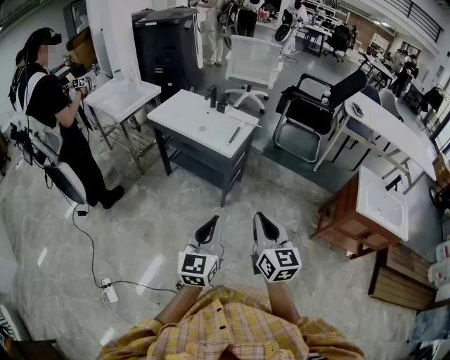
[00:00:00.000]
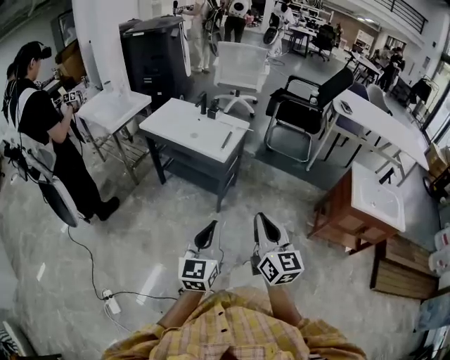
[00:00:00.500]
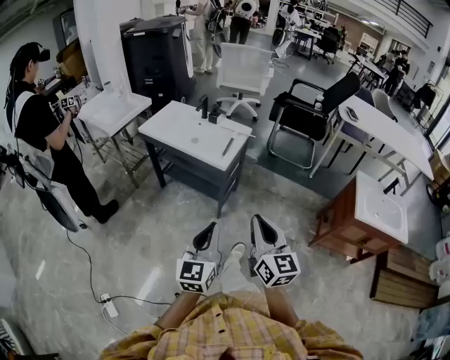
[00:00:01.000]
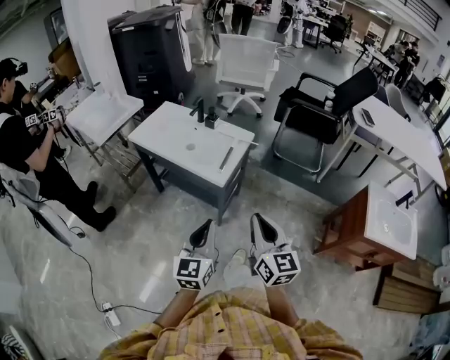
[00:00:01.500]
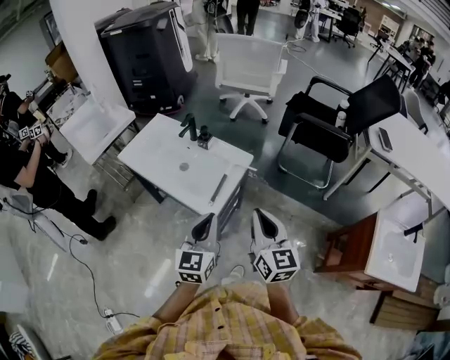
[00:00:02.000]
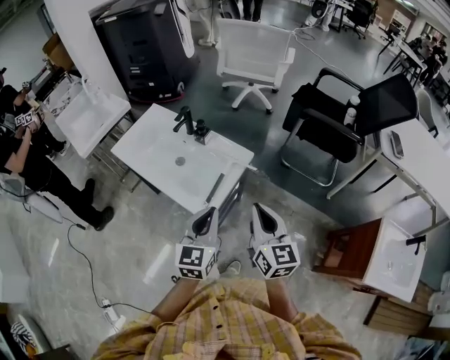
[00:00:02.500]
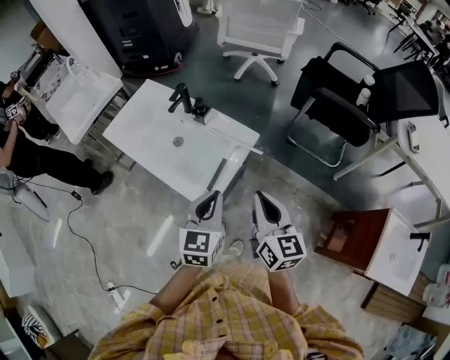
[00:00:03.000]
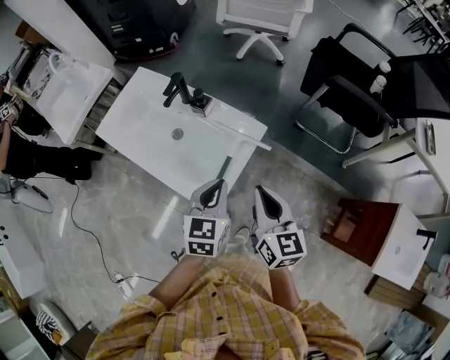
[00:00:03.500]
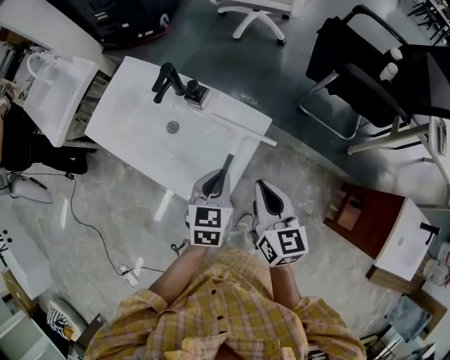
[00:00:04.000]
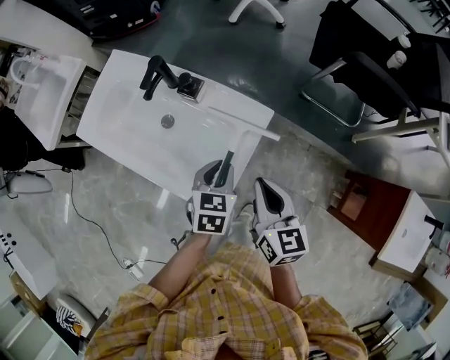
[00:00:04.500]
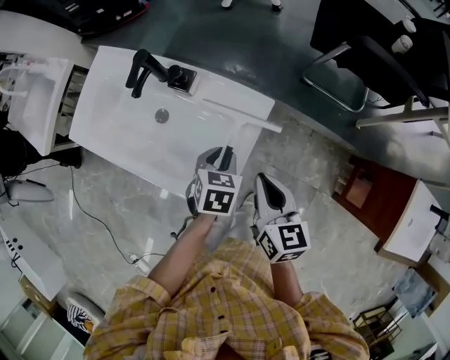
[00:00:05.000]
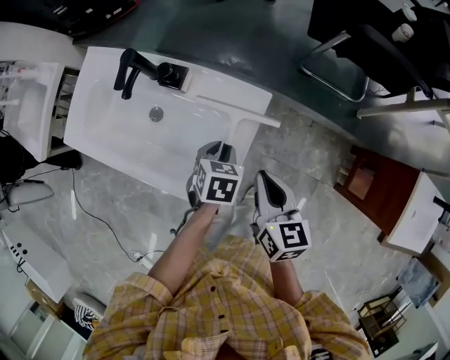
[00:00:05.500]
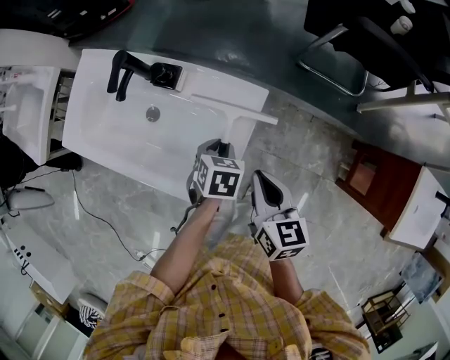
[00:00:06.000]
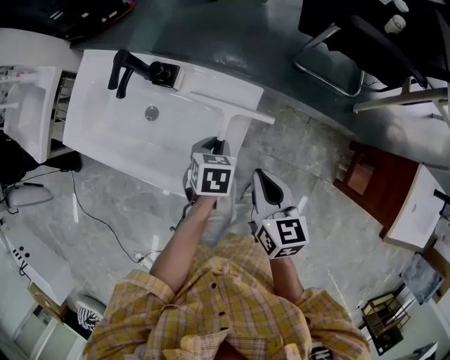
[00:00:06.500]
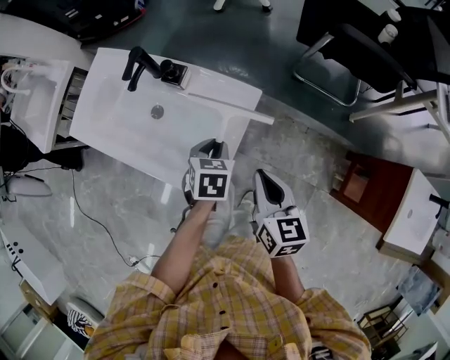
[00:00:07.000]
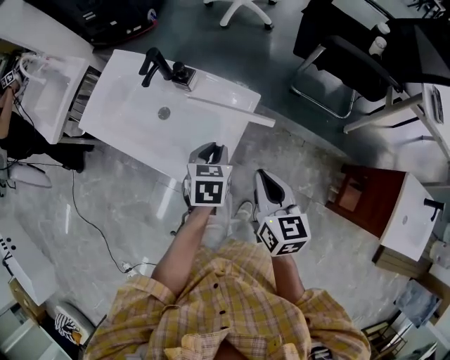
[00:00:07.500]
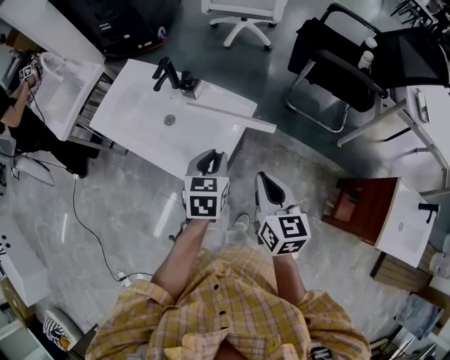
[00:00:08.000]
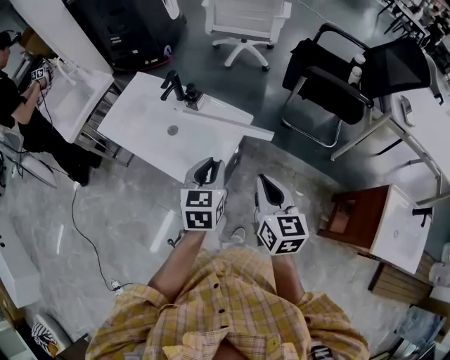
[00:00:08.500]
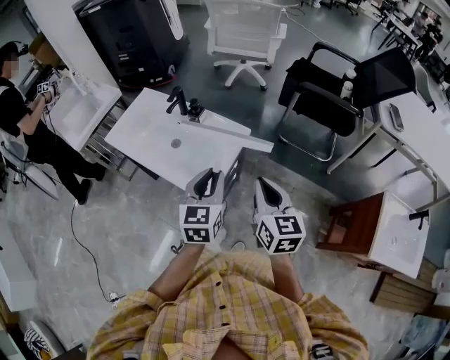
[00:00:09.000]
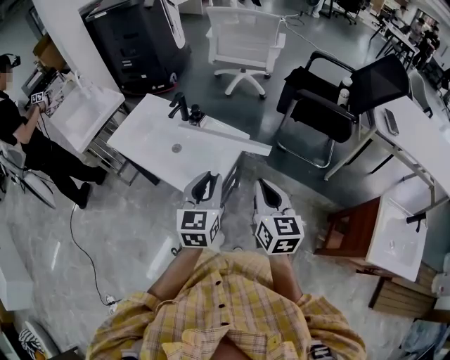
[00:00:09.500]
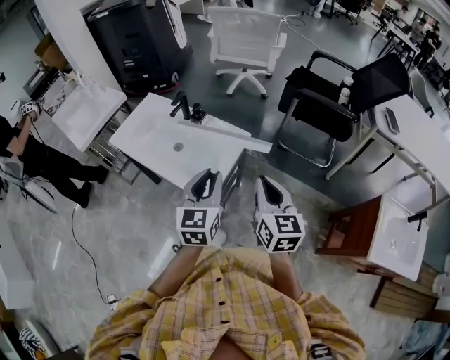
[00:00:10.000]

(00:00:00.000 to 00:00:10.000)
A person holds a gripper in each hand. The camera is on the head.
00:00:00.000 - 00:00:02.000: The two grippers travel together, forward, roughly 40 cm.
00:00:02.000 - 00:00:04.000: Both grippers travel together forward and downward, roughly 25 cm. The left gripper changes its angle by approximately 30 degrees.
00:00:04.000 - 00:00:06.000: The left gripper is displaced downward by some 15 cm, and changes its angle by about 30 degrees. Meanwhile the right gripper goes roughly 10 cm downward.
00:00:06.000 - 00:00:08.000: The two grippers go approximately 20 cm upward and backward. The left gripper turns by about 30 degrees.
00:00:08.000 - 00:00:10.000: The left gripper travels upward and backward by some 15 cm, and changes its angle by some 30 degrees, while the right gripper shifts roughly 10 cm upward and backward.

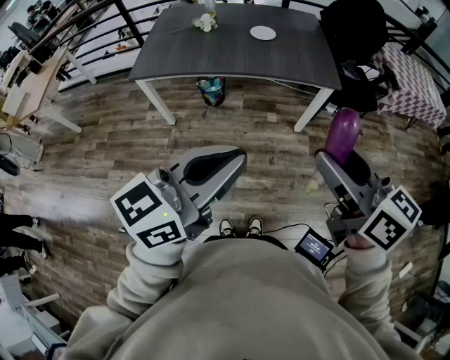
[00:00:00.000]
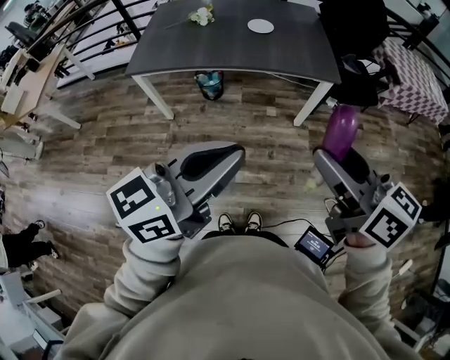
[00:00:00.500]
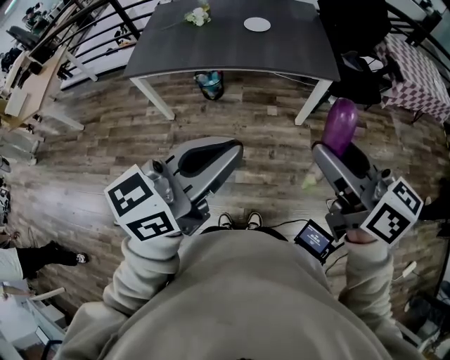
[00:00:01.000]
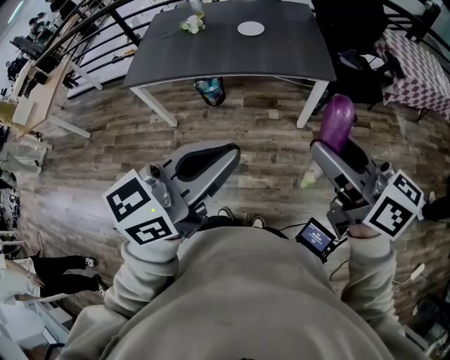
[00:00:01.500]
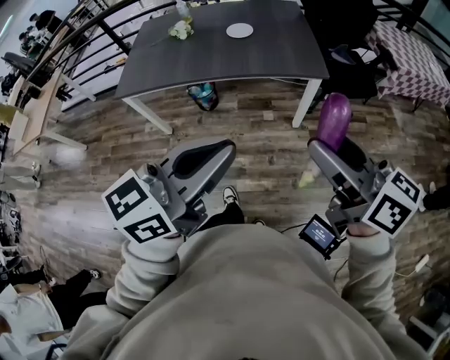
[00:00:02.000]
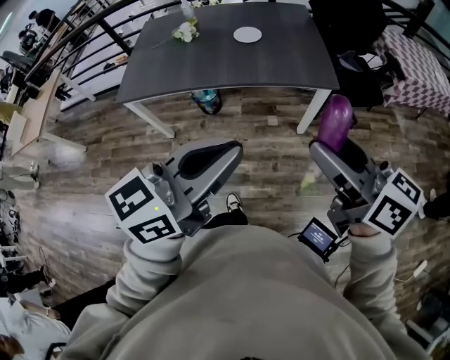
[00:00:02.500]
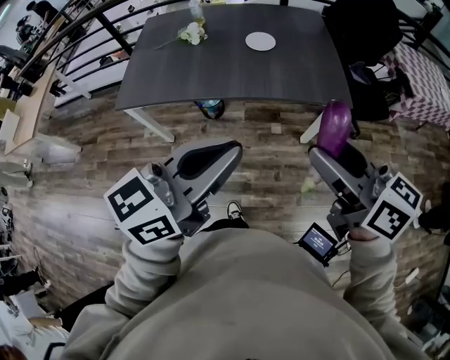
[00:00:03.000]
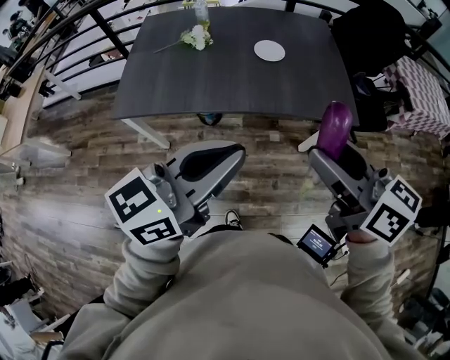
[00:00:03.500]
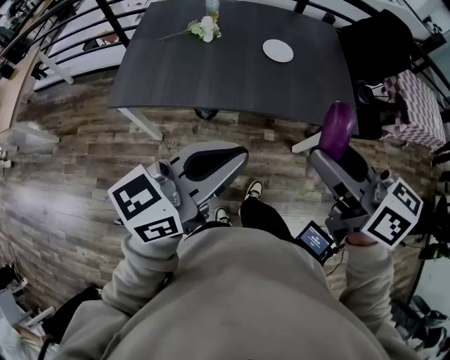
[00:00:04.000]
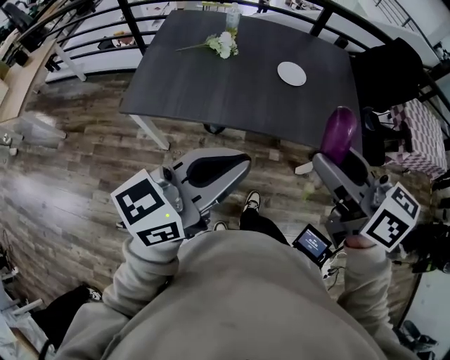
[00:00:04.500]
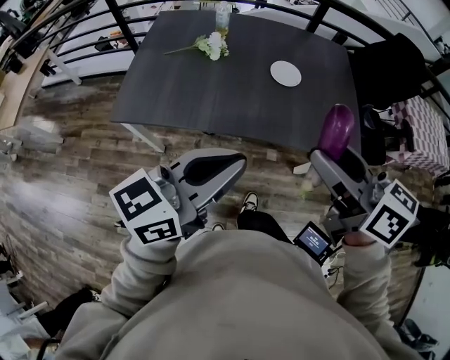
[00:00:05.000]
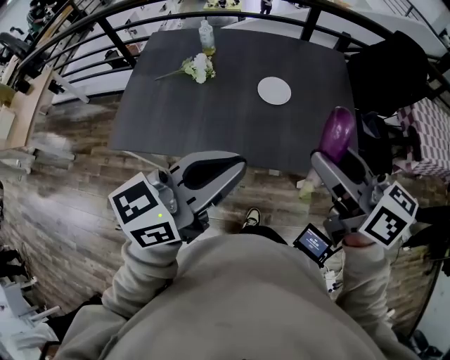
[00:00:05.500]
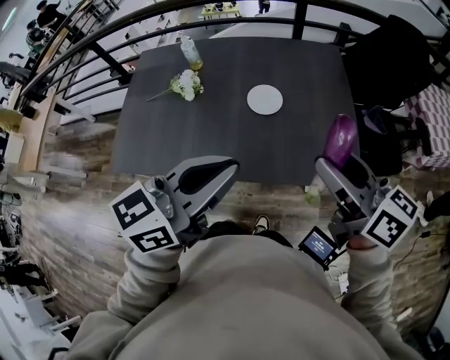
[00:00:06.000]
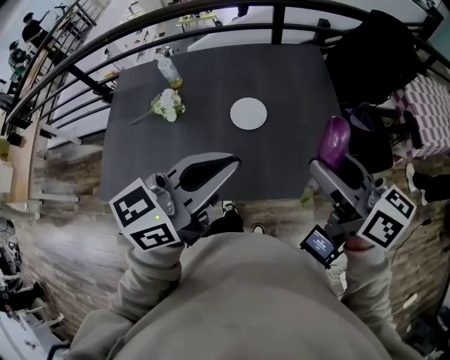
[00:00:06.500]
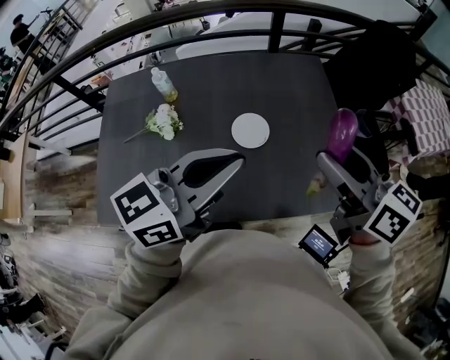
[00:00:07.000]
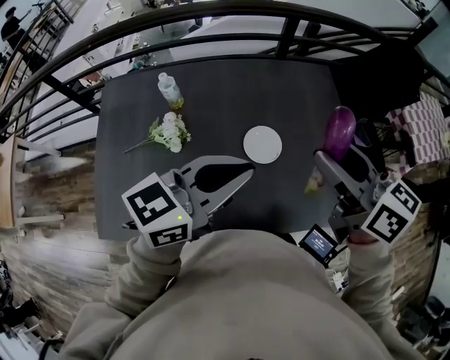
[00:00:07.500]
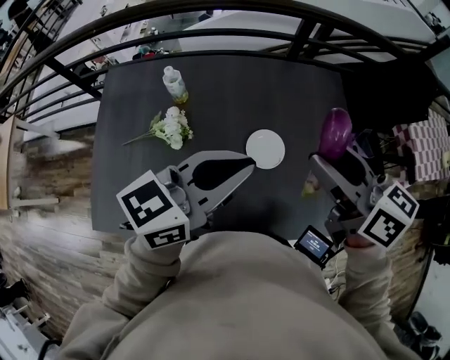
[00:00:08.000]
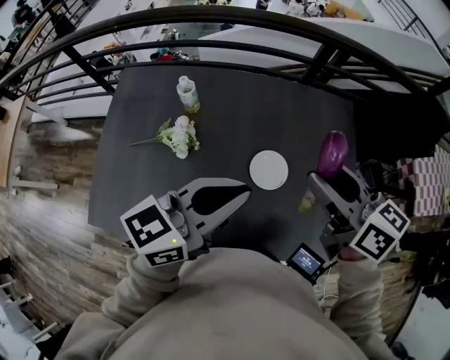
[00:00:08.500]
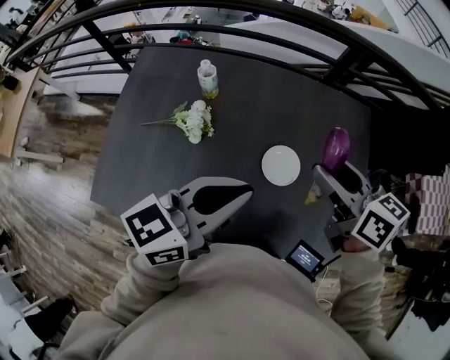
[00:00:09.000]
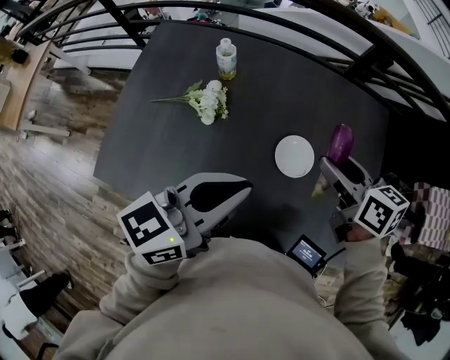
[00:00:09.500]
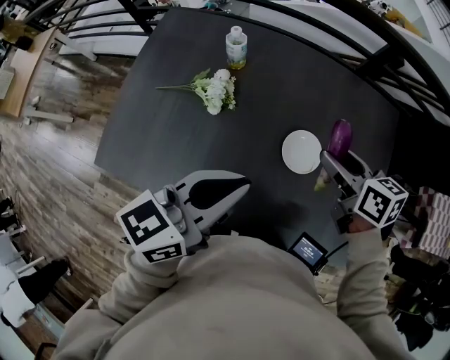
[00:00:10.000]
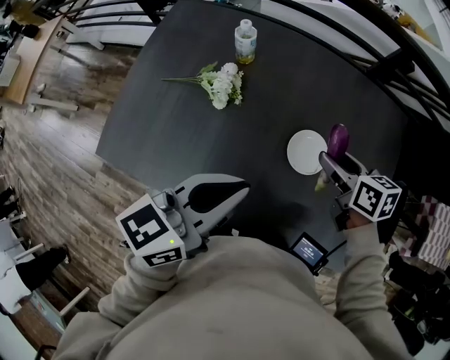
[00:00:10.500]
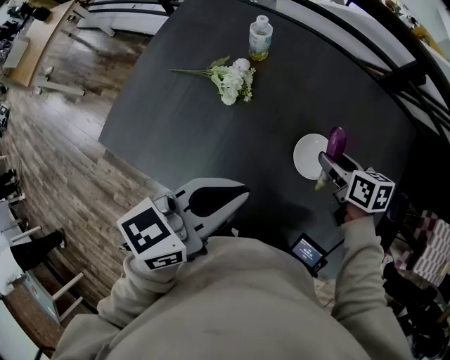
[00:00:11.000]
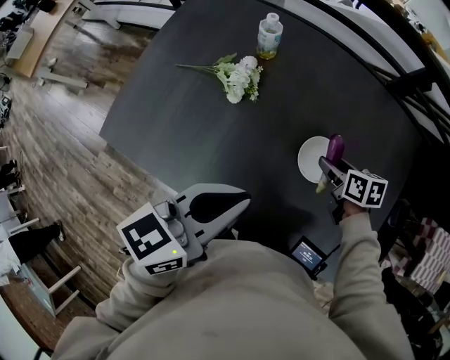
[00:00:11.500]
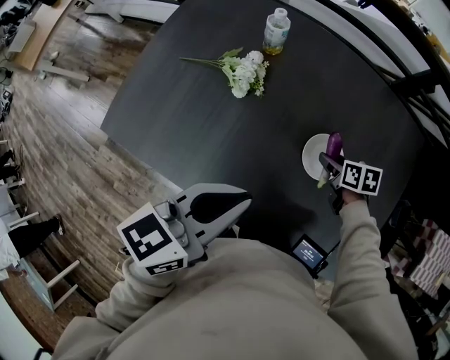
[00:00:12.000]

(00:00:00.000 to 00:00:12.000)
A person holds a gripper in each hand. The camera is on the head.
00:00:00.000 - 00:00:02.000: The grippers both shift to the right and forward by approximately 10 cm.
00:00:02.000 - 00:00:04.000: The left gripper travels forward and to the left by roughly 30 cm. Meanwhile the right gripper heads to the left and forward, covering about 30 cm.
00:00:04.000 - 00:00:06.000: Both grippers travel together forward and to the right, about 25 cm.
00:00:06.000 - 00:00:08.000: The left gripper travels forward by approximately 25 cm; the right gripper shifts roughly 25 cm forward and to the left.
00:00:08.000 - 00:00:10.000: The right gripper moves downward, about 20 cm, and changes its angle by some 20 degrees; the left gripper moves downward and to the left, about 10 cm, and turns by roughly 20 degrees.
00:00:10.000 - 00:00:12.000: The right gripper heads downward, covering about 25 cm, and swivels roughly 20 degrees; the left gripper moves about 5 cm.

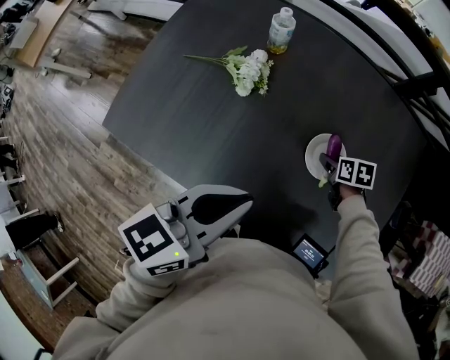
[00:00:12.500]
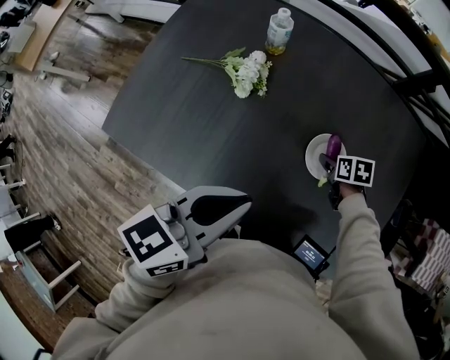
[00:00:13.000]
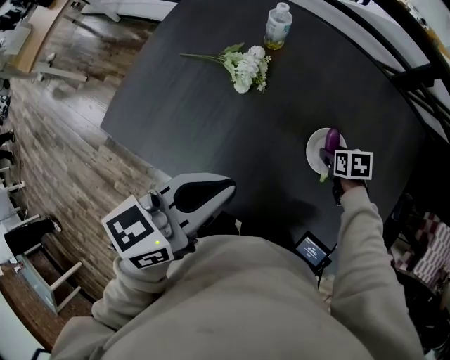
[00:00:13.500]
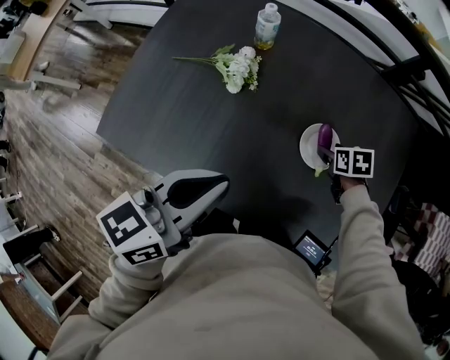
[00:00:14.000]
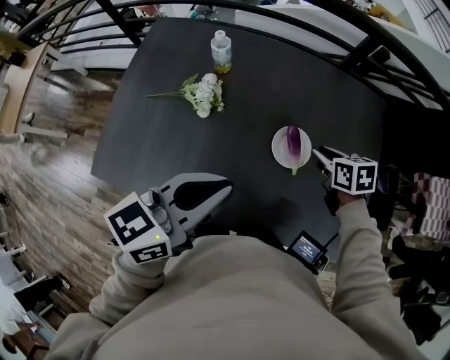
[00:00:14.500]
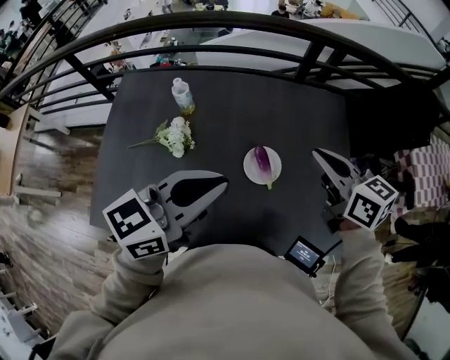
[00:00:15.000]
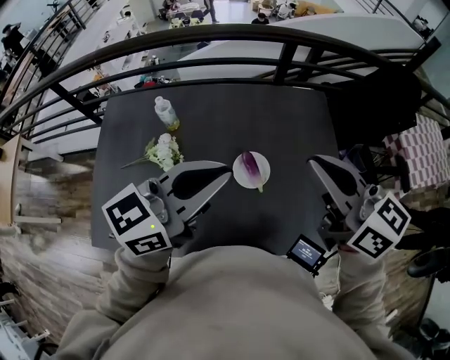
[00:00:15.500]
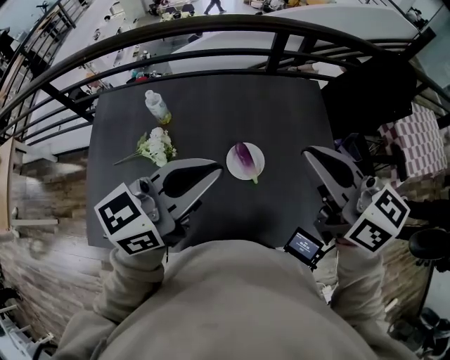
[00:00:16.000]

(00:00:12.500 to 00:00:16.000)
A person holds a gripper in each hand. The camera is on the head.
00:00:12.500 - 00:00:14.500: The right gripper heads upward, covering some 15 cm, and closes up.
00:00:14.500 - 00:00:16.000: The right gripper is displaced upward by some 30 cm, points its fingers some 40 degrees further upward, and closes up. The left gripper shifts some 15 cm upward, forward and to the right, and swivels roughly 20 degrees.

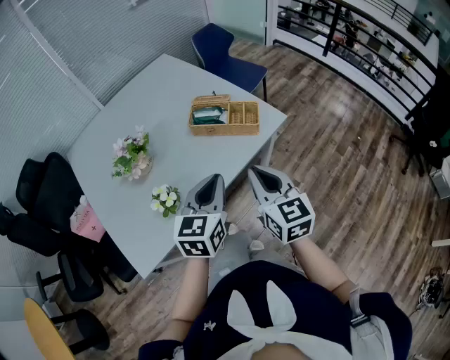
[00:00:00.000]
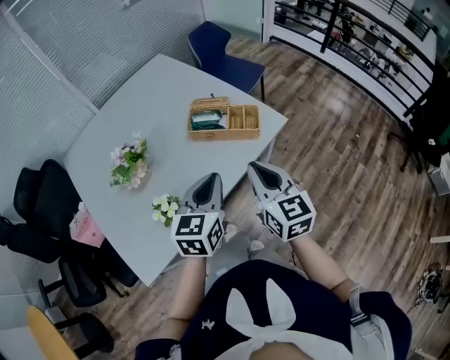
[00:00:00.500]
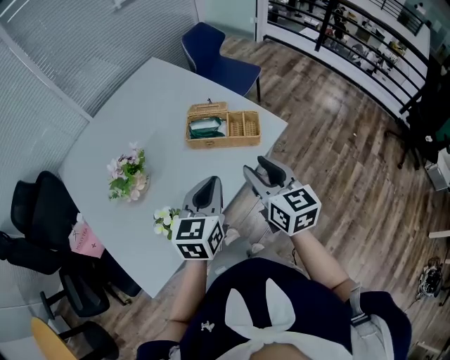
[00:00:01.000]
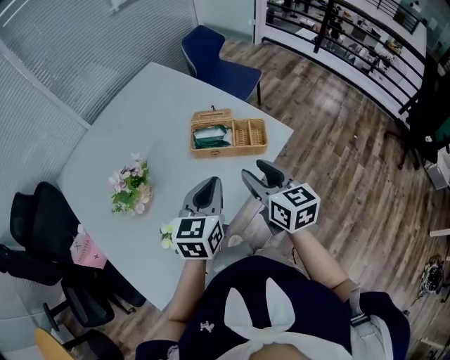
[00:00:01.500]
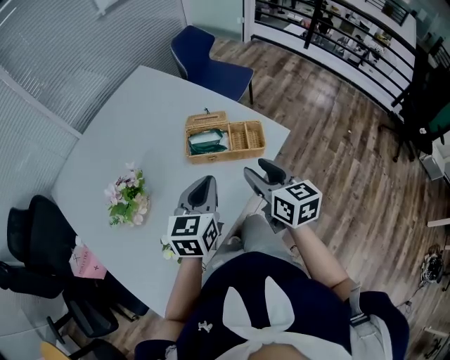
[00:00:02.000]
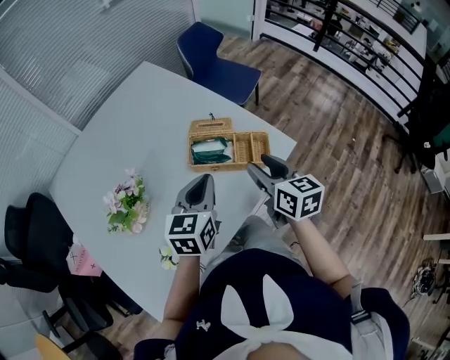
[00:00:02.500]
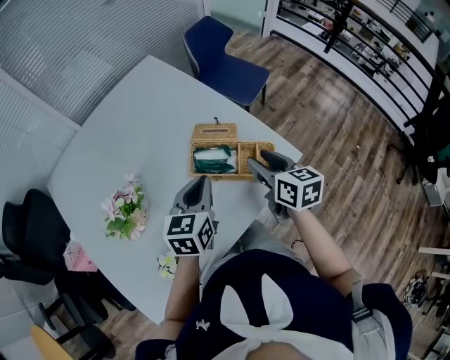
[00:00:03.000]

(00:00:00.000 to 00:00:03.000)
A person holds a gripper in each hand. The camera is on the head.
00:00:00.000 - 00:00:01.500: Both grippers move forward, roughly 10 cm. The right gripper opens its fingers.
00:00:01.500 - 00:00:03.000: The two grippers go some 15 cm forward.
